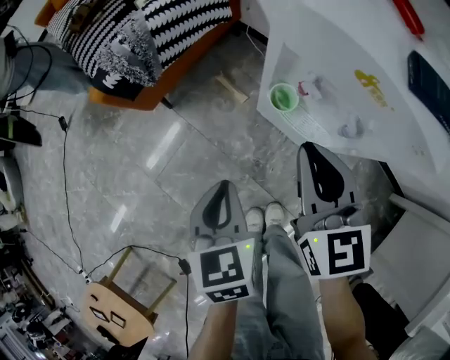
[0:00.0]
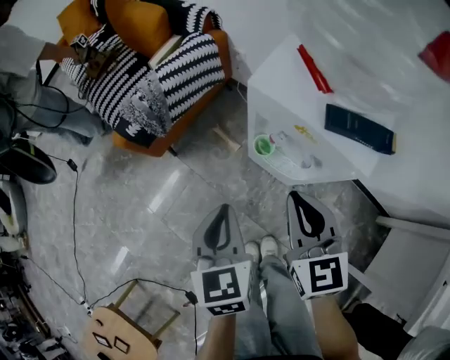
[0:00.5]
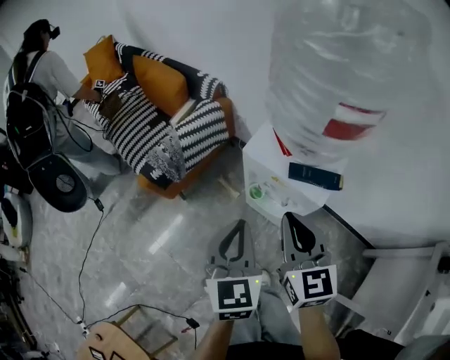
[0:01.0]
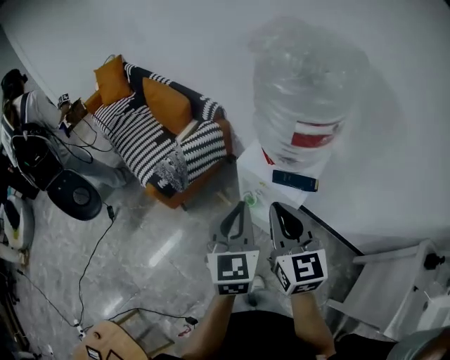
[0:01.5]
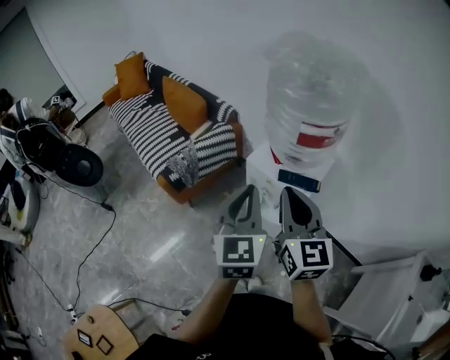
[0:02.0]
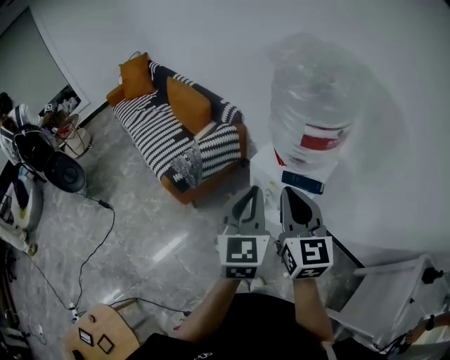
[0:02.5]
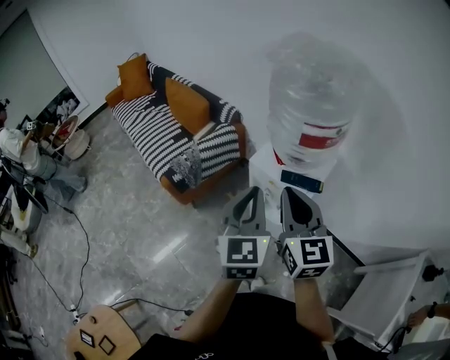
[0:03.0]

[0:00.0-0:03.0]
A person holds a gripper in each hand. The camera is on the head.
0.0 to 1.5 s: The two grippers go about 40 cm upward. The left gripper points its fingers about 30 degrees further upward.
1.5 to 3.0 s: The left gripper is displaced upward by roughly 5 cm.

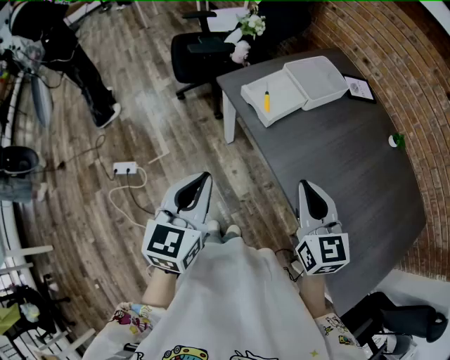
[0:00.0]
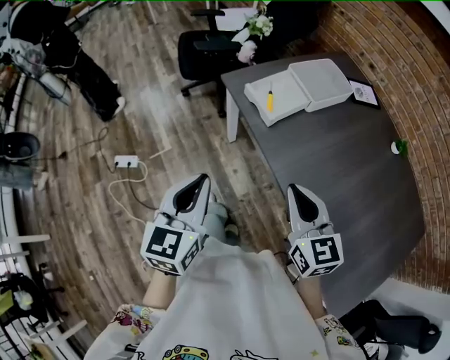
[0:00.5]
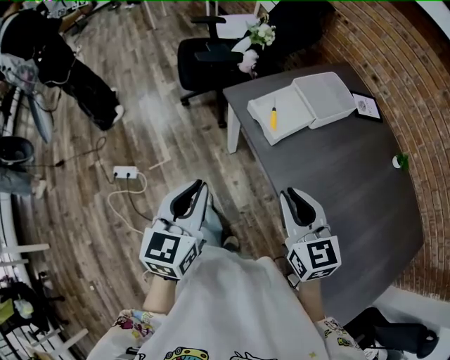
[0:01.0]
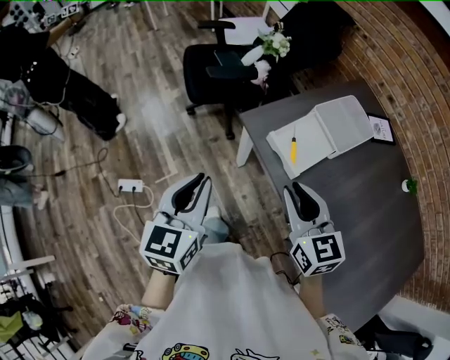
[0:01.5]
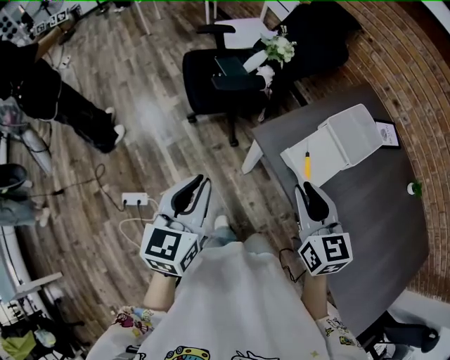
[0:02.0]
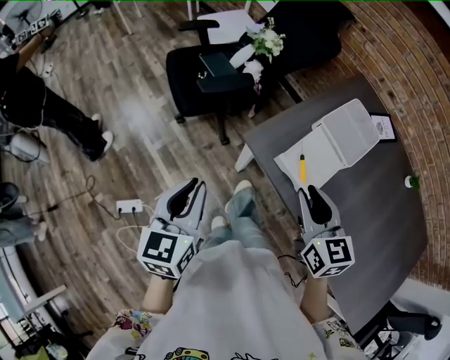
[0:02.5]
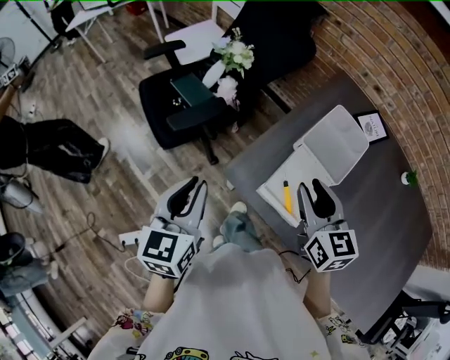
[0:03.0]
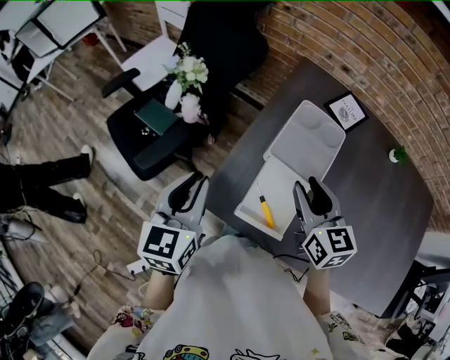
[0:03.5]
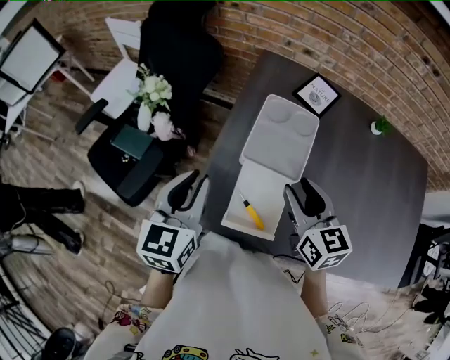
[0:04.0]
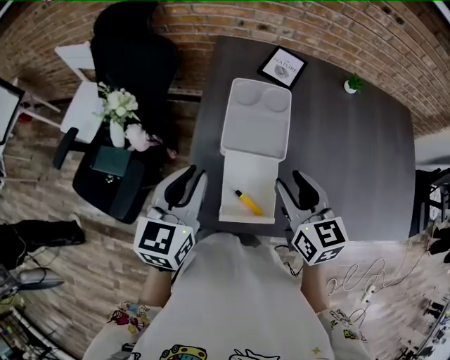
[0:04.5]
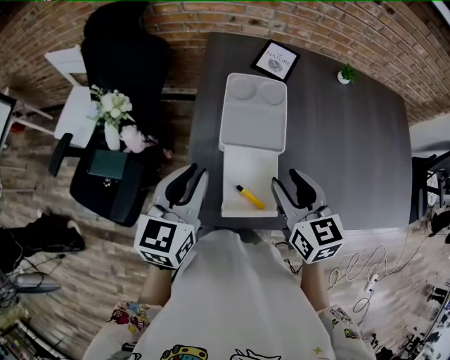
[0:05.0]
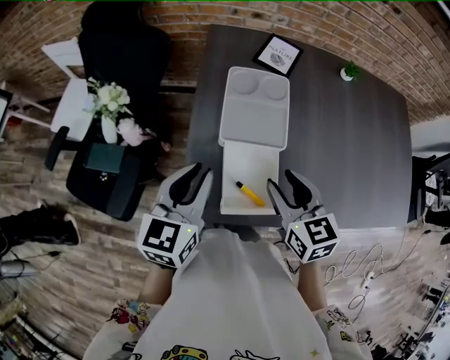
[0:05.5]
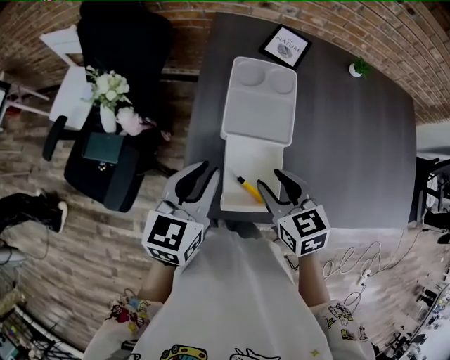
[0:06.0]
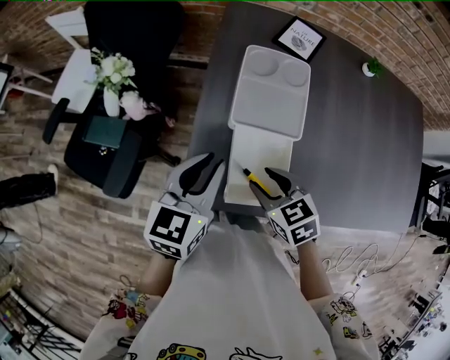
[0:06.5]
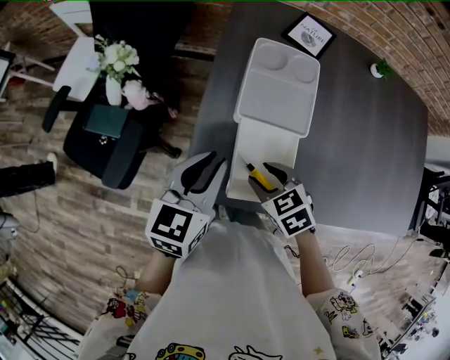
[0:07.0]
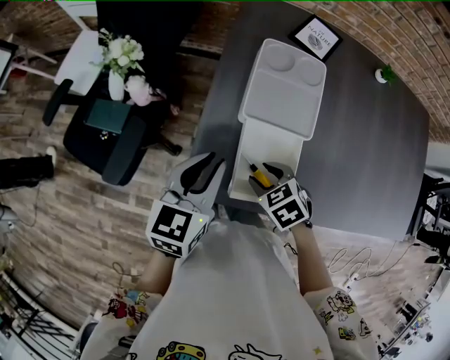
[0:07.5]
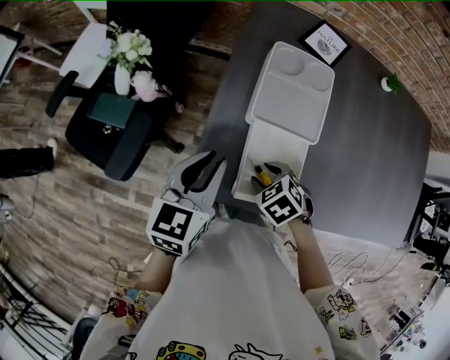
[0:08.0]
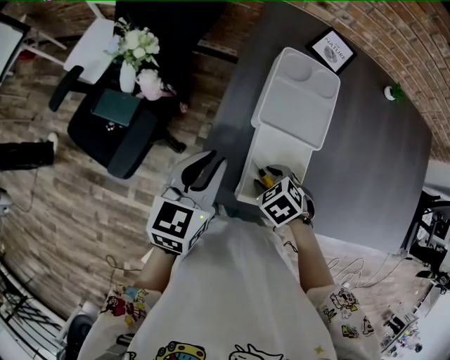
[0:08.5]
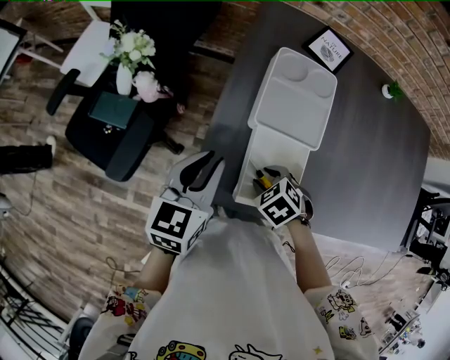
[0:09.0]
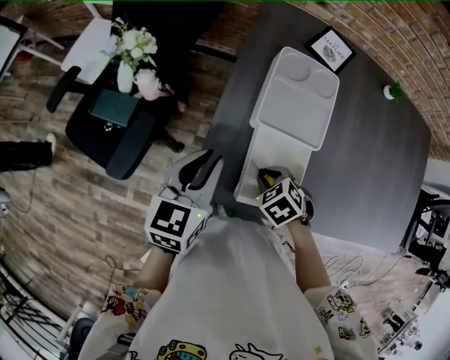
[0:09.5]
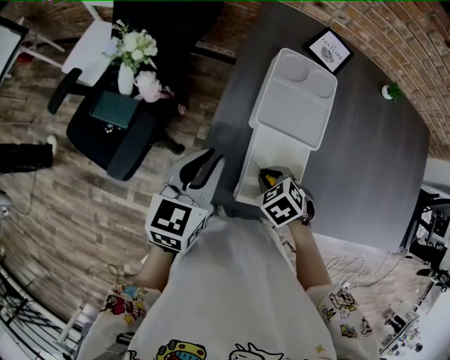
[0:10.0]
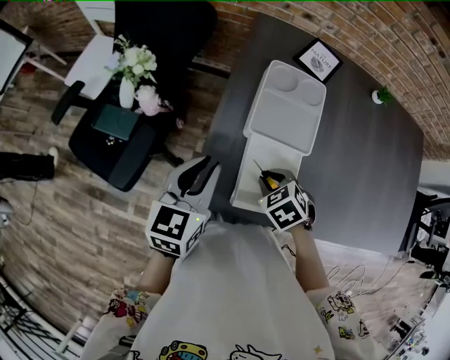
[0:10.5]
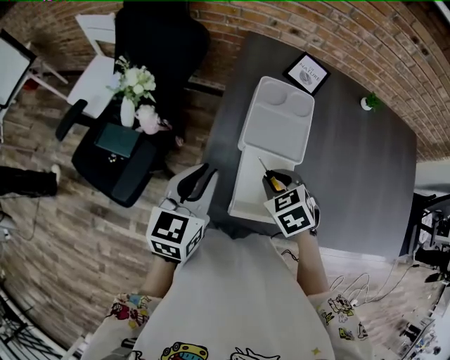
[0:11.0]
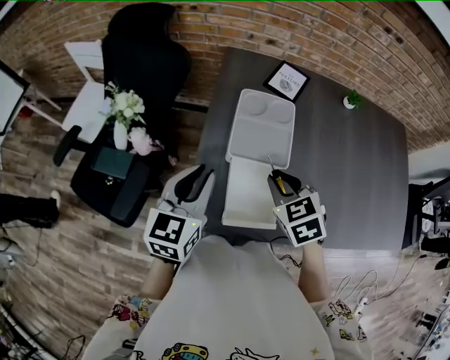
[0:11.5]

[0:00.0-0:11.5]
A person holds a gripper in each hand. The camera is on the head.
0.0 to 2.0 s: Both grippers move forward and to the left, approximately 25 cm. The right gripper opens its fingers.
2.0 to 4.0 s: The left gripper moves approximately 35 cm, and changes its angle by roughly 40 degrees. Meanwhile the right gripper shifts by approximately 25 cm, and rotates roughly 40 degrees.
4.0 to 6.0 s: The right gripper heads downward and backward, covering some 10 cm; the left gripper is displaced to the right by about 5 cm, and swivels about 20 degrees.
6.0 to 7.5 s: The right gripper is displaced downward by roughly 10 cm, and swivels about 30 degrees.
7.5 to 9.5 s: The right gripper closes.
9.5 to 11.5 s: The left gripper travels upward by roughly 5 cm. Meanwhile the right gripper moves upward, approximately 15 cm, and turns by roughly 30 degrees.

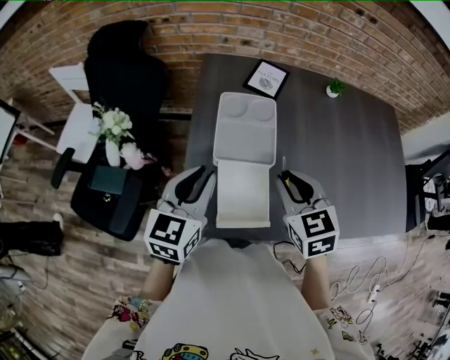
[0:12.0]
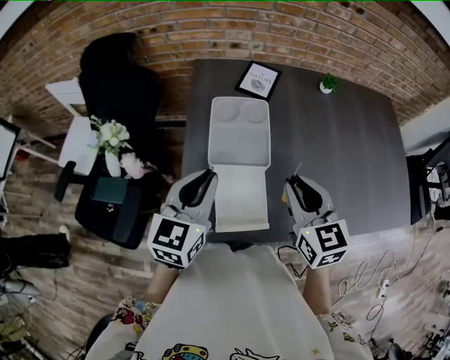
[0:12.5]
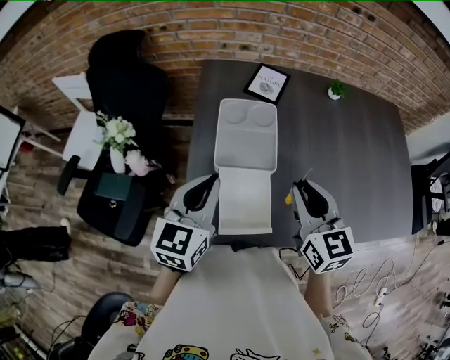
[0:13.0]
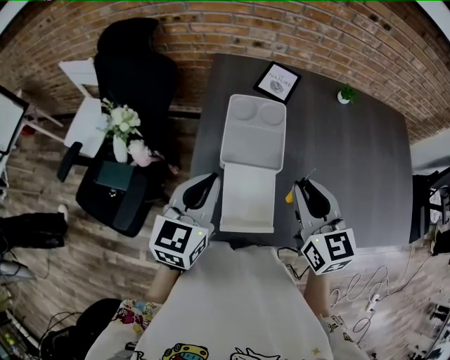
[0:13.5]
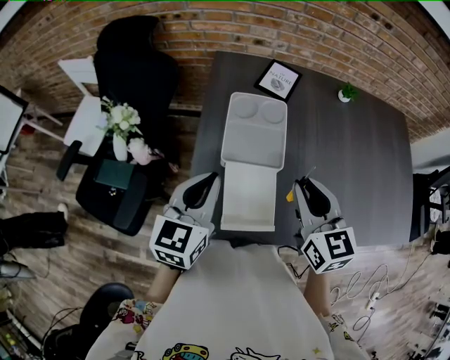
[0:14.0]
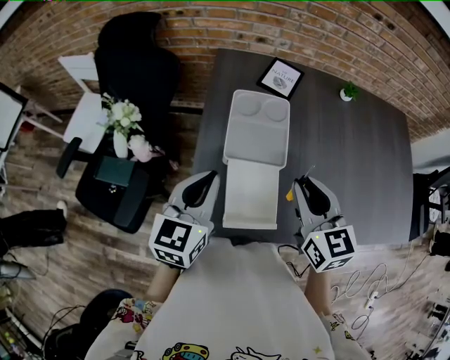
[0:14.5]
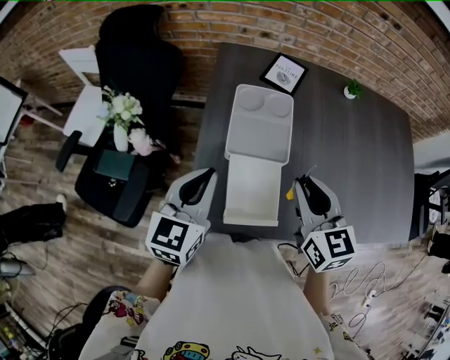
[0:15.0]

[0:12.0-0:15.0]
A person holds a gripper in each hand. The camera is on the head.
13.5 to 15.0 s: There are only small adjustments of the grippers.

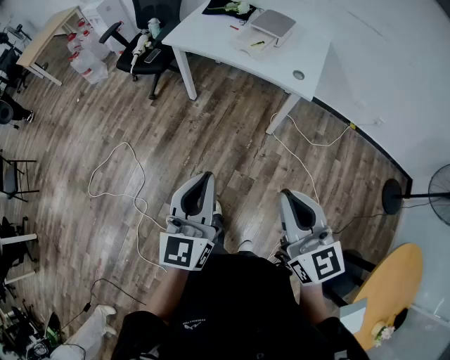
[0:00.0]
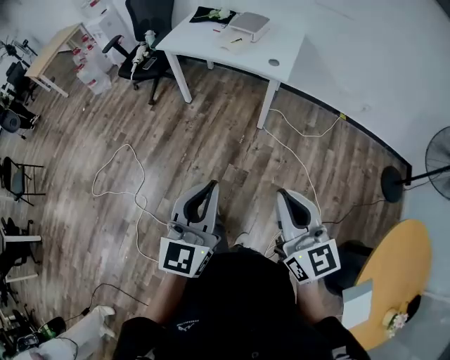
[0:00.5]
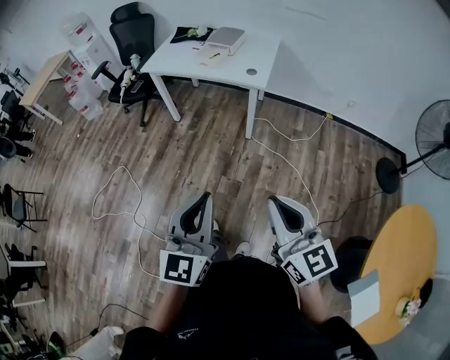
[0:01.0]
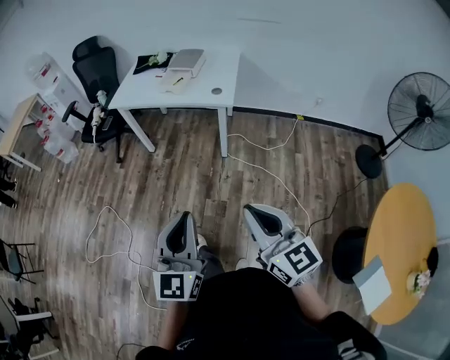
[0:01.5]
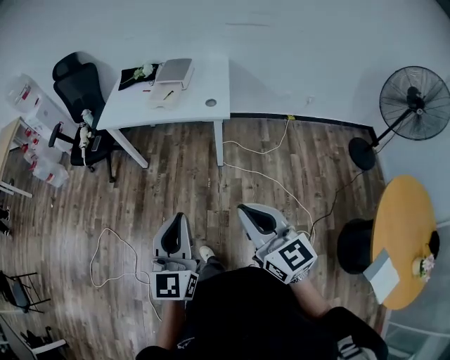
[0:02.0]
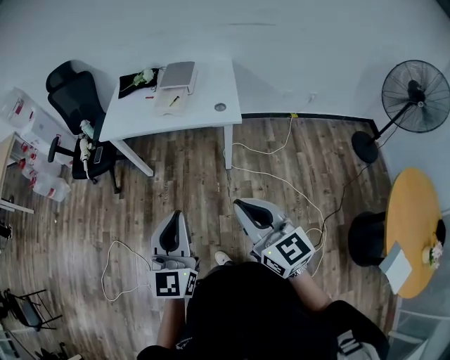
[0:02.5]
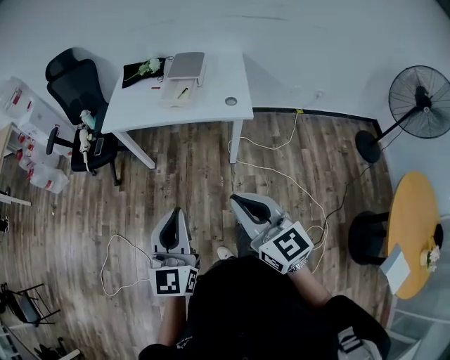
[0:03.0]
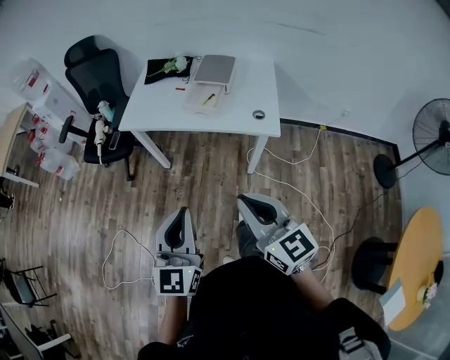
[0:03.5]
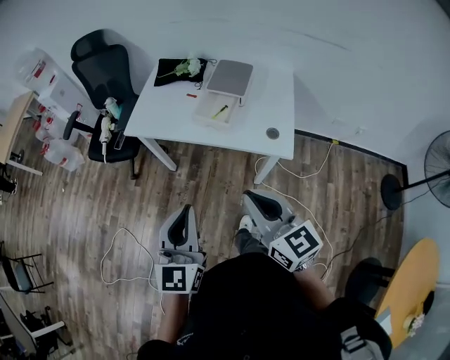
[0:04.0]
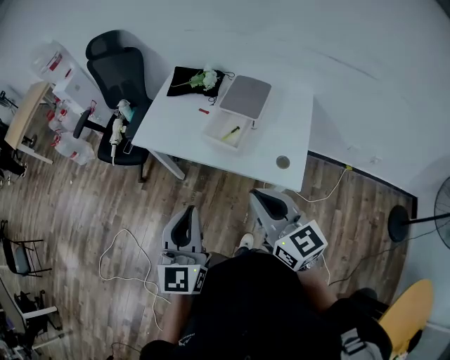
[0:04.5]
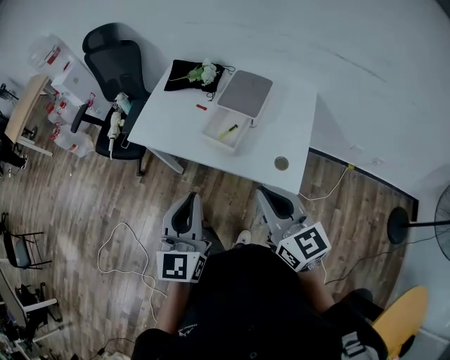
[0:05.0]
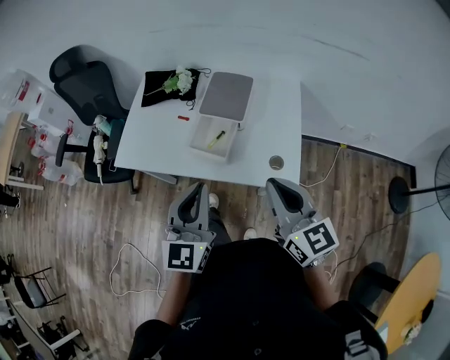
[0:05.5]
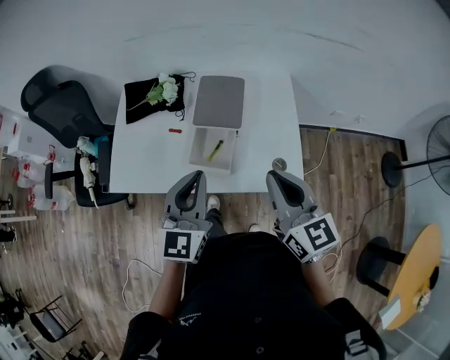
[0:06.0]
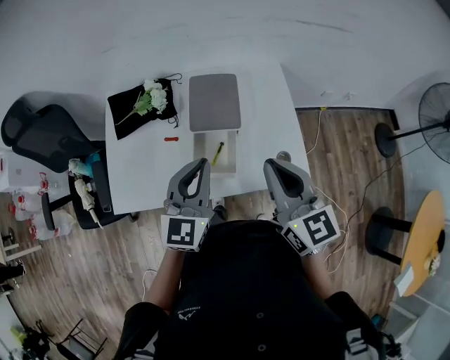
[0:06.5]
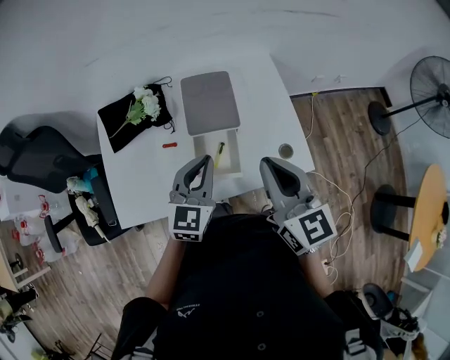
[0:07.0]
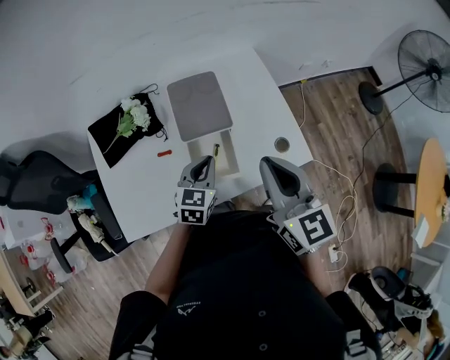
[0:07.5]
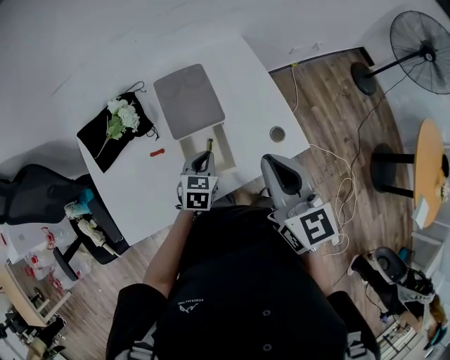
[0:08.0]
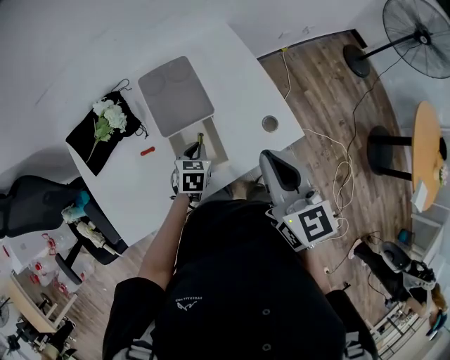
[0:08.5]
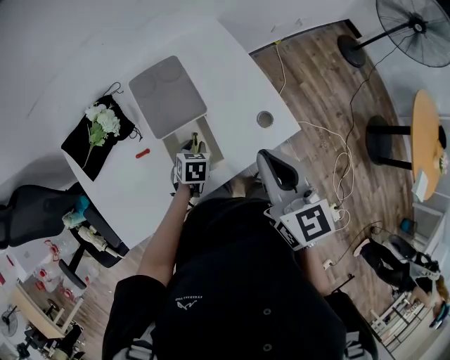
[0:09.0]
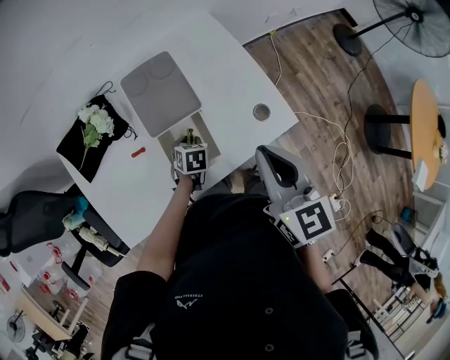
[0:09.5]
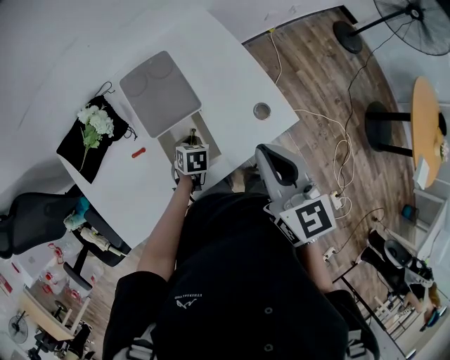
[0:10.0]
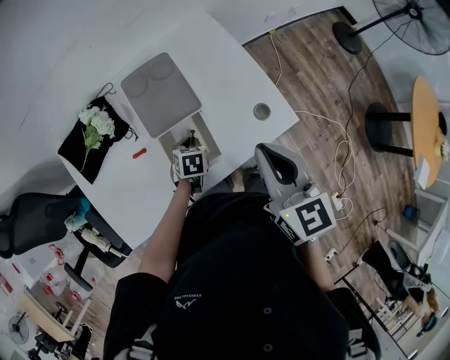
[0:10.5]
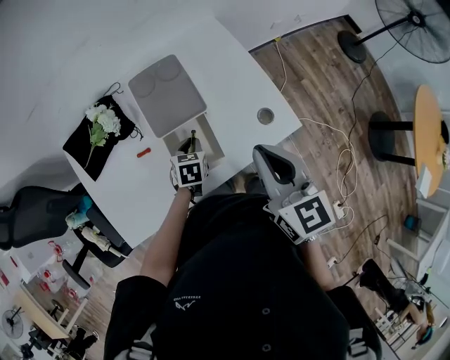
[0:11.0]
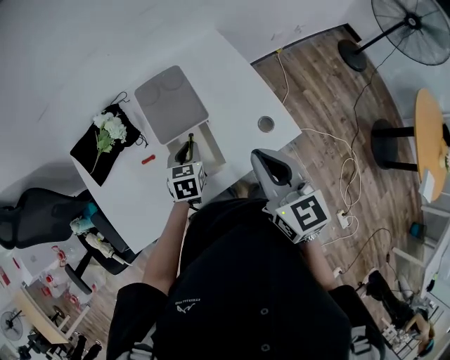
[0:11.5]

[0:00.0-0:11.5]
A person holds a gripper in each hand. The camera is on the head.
0.0 to 2.0 s: The two grippers go roughly 5 cm to the right. The right gripper travels backward and back again, some 20 cm each way. Meanwhile the left gripper moves approximately 25 cm backward and comes back.
2.0 to 4.0 s: The grippers both shift forward by about 35 cm.
4.0 to 6.0 s: The left gripper ends up some 35 cm from where it was. Meanwhile the right gripper moves about 30 cm, and swivels some 20 degrees.
6.0 to 7.5 s: The right gripper shifts by roughly 10 cm, and changes its angle by roughly 20 degrees, while the left gripper goes roughly 20 cm downward, and rotates about 40 degrees.
7.5 to 9.5 s: The left gripper goes roughly 20 cm downward, tips its fingers downward by approximately 30 degrees, and opens its fingers. Meanwhile the right gripper ends up some 5 cm from where it was.
9.5 to 11.5 s: The left gripper goes approximately 10 cm upward, and rotates approximately 20 degrees.
